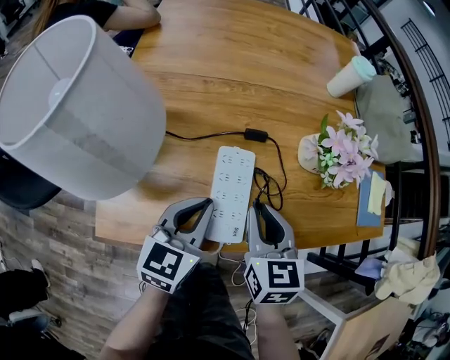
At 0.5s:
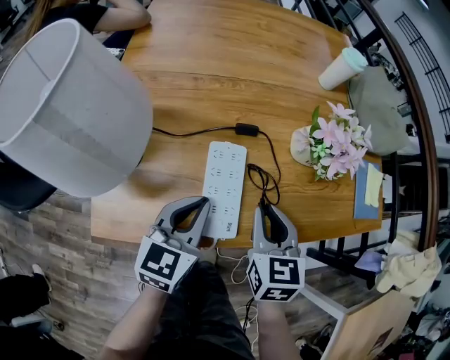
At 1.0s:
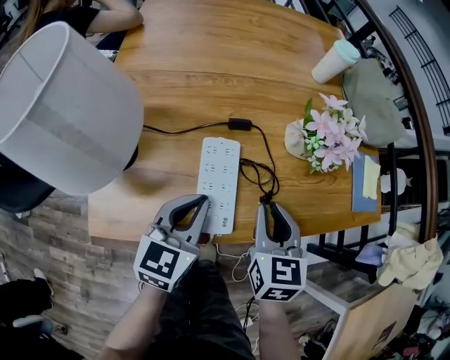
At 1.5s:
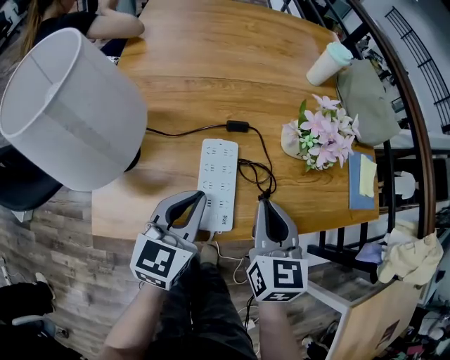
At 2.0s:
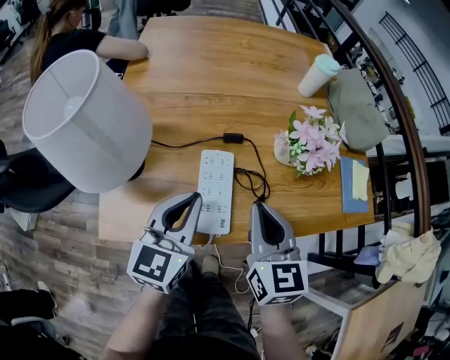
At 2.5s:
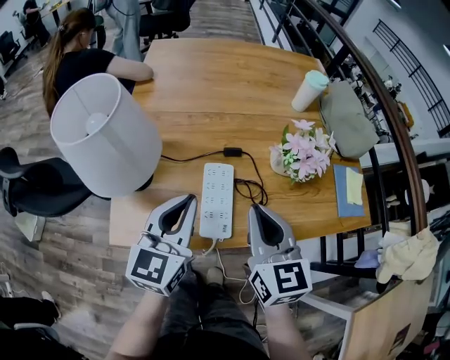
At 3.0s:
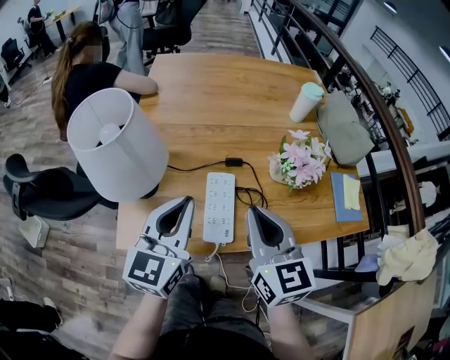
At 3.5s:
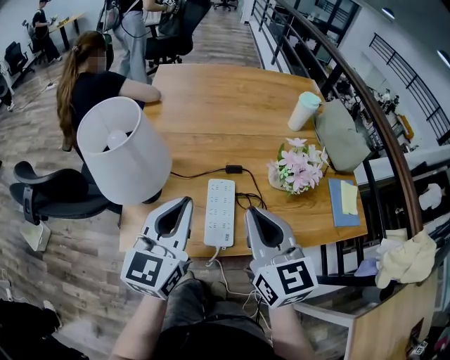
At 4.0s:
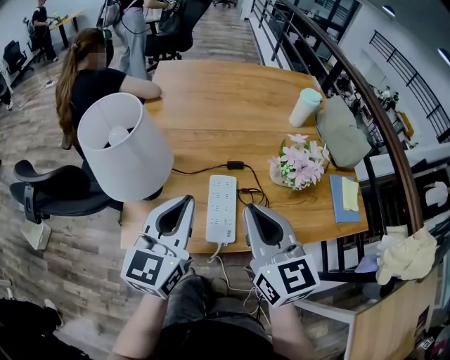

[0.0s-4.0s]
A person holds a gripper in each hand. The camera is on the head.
0.0s to 2.0s: Both grippers move upward, some 10 cm.
2.0s to 4.0s: The two grippers go some 10 cm upward.

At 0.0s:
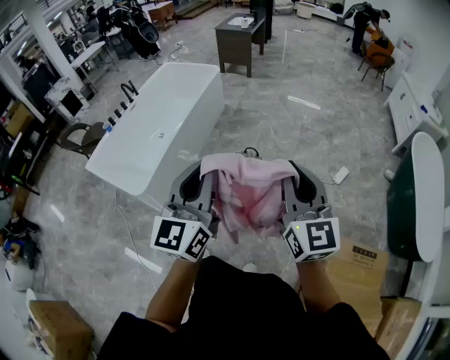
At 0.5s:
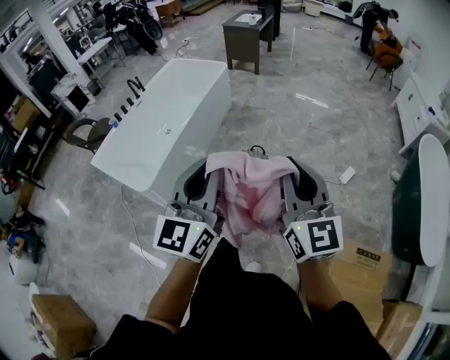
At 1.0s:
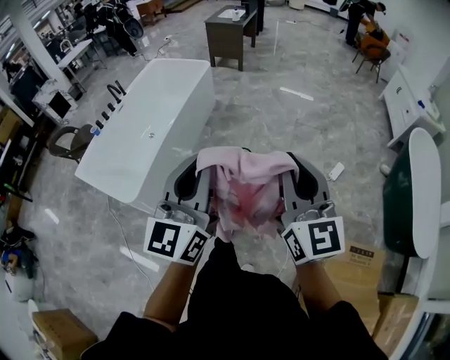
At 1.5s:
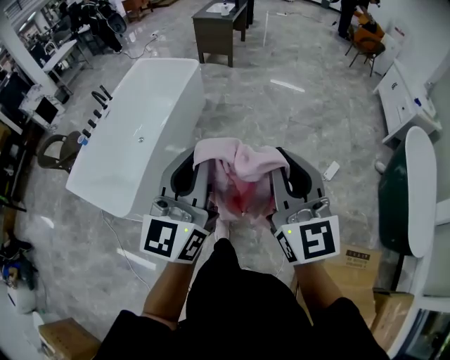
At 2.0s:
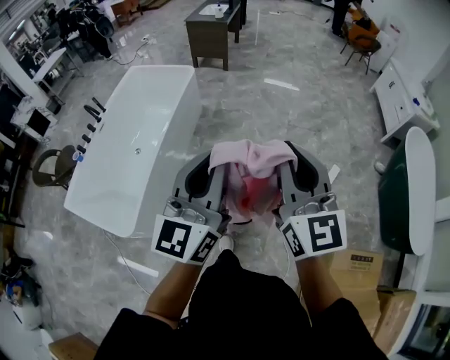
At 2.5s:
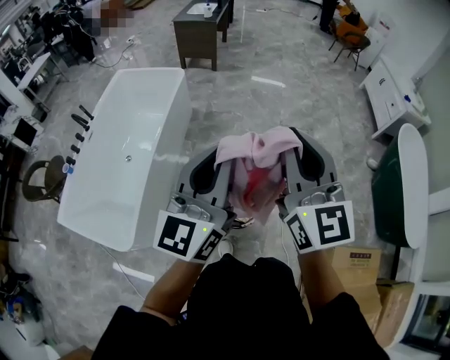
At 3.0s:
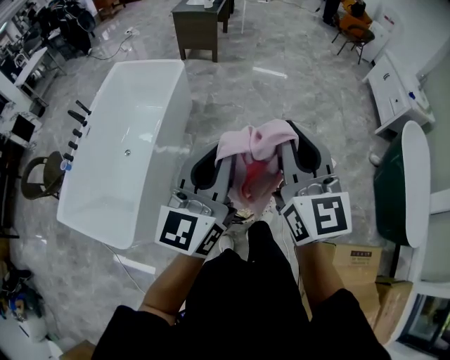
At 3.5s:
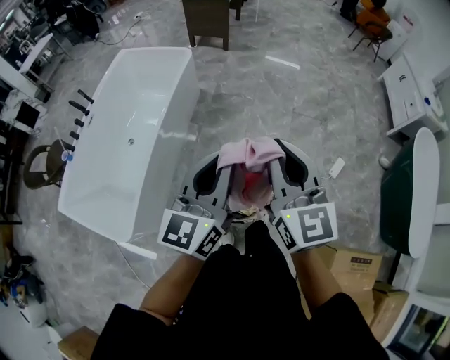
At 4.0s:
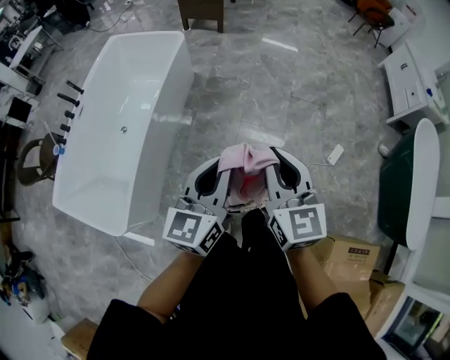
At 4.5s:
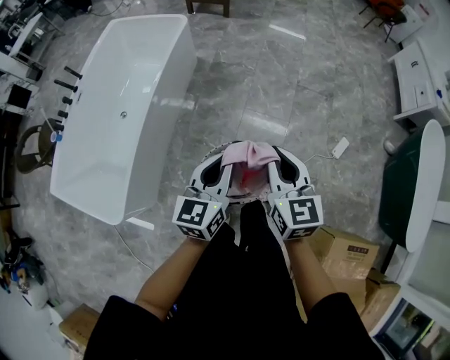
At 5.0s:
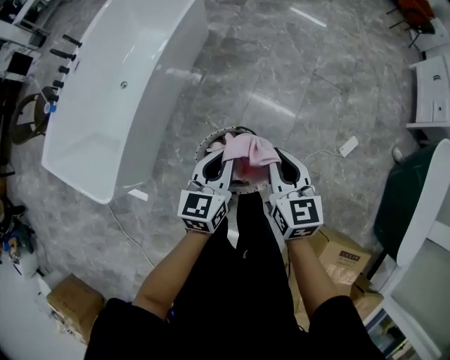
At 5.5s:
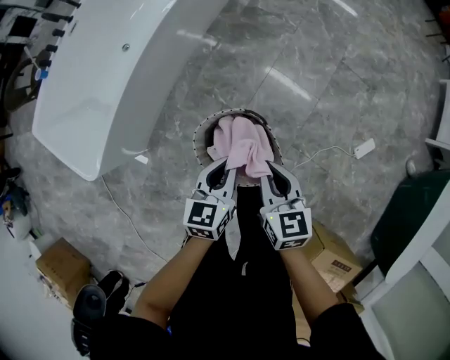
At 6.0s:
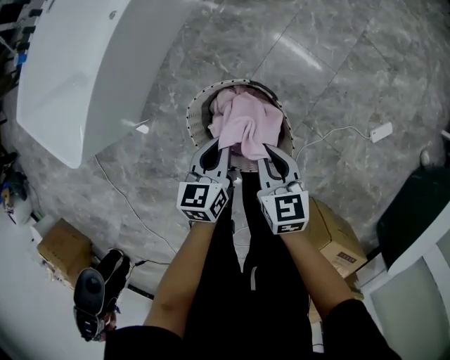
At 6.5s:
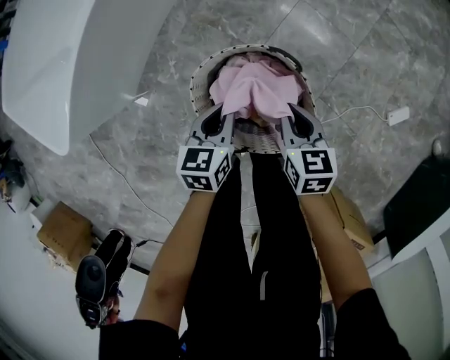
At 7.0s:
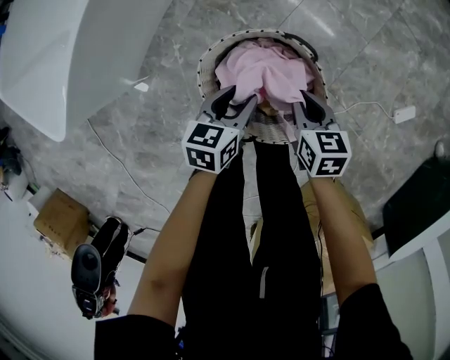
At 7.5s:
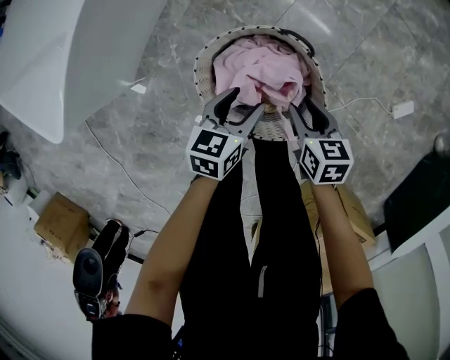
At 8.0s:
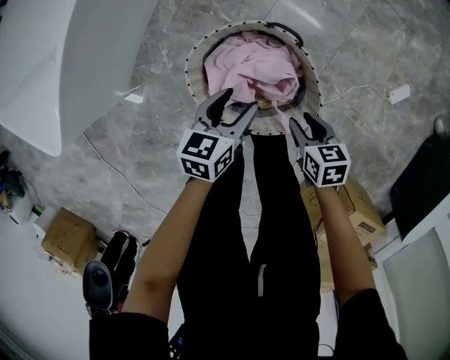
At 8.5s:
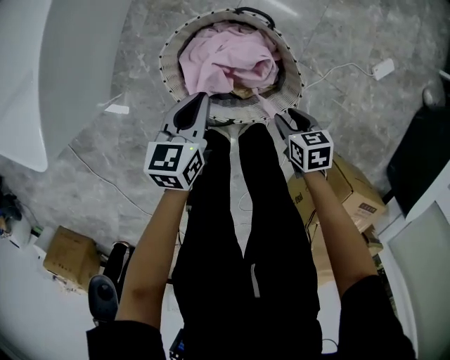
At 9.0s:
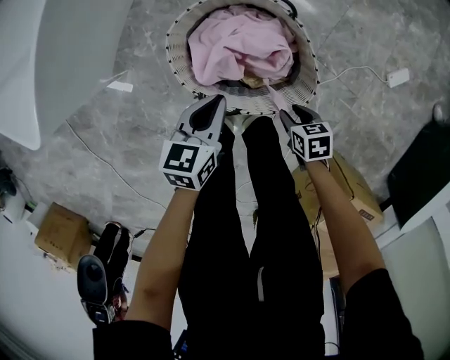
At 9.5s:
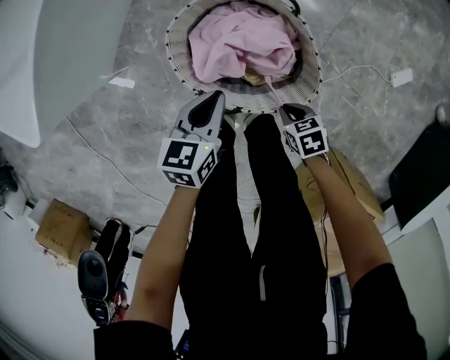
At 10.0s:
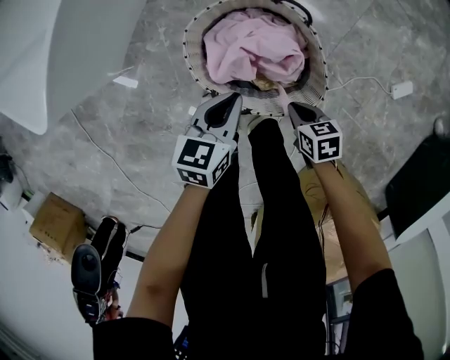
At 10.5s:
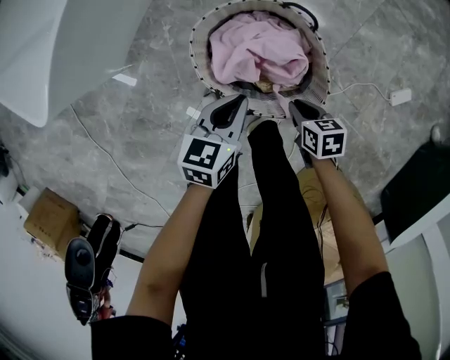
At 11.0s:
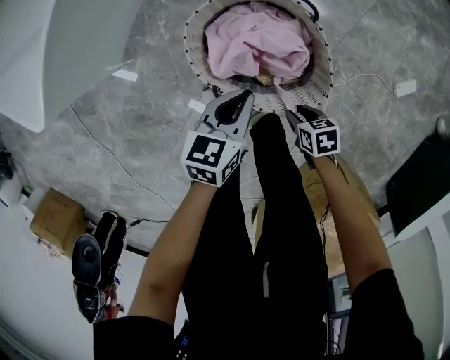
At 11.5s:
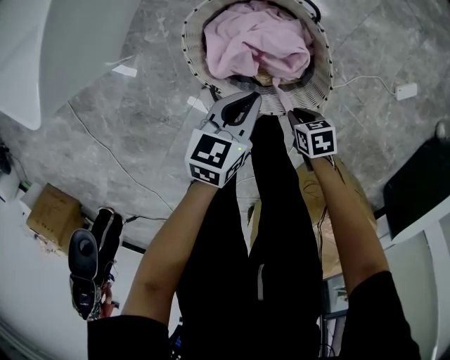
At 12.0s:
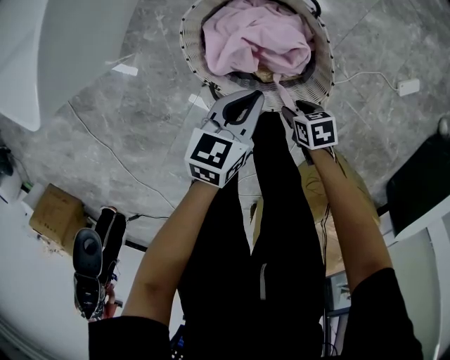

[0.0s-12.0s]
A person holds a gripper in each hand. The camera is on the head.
0.0s to 2.0s: Both grippers move forward, approximately 30 cm.
2.0s to 4.0s: The left gripper is displaced downward and forward by about 25 cm, and swivels roughly 20 degrees. Meanwhile the right gripper shifts some 25 cm forward and downward.
4.0s to 6.0s: The grippers both shift downward by about 50 cm. The right gripper turns by some 40 degrees. The left gripper tips its fingers downward by about 30 degrees.
6.0s to 8.0s: The right gripper heads downward and backward, covering about 20 cm, rotates about 20 degrees, and opens up. The left gripper travels downward and backward by approximately 15 cm, and opens its fingers.
8.0s to 10.0s: The right gripper travels downward and backward by approximately 10 cm, and closes, while the left gripper shifts about 5 cm backward, and closes up.
10.0s to 12.0s: The right gripper travels downward by approximately 5 cm, and opens its fingers.

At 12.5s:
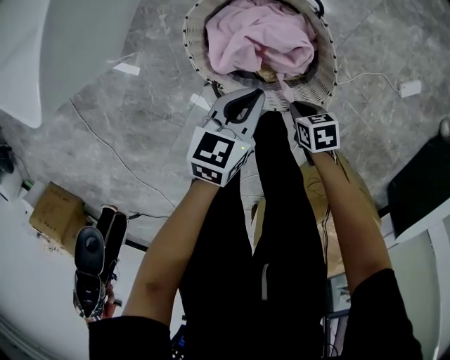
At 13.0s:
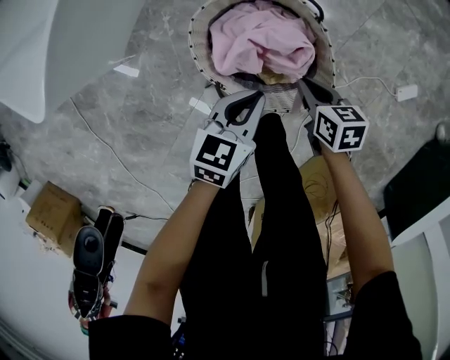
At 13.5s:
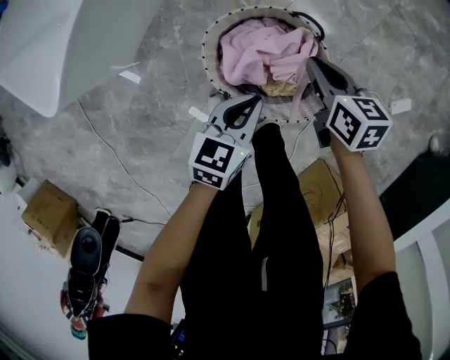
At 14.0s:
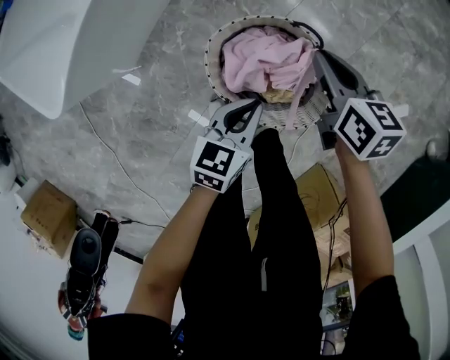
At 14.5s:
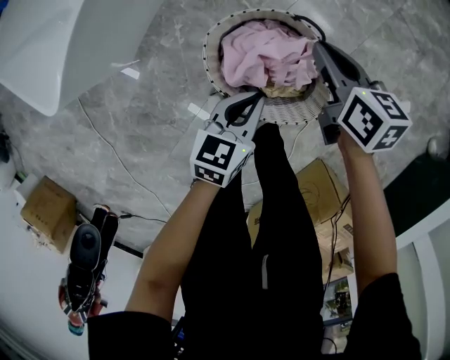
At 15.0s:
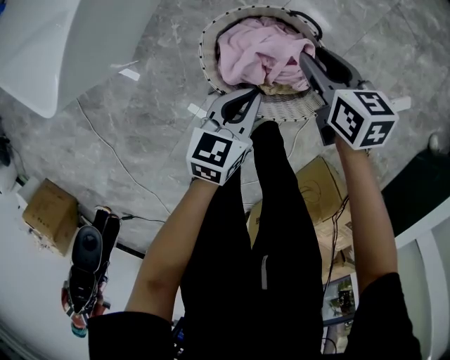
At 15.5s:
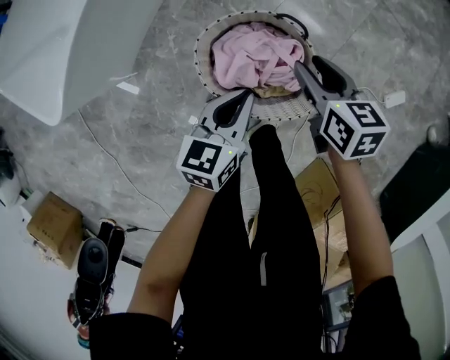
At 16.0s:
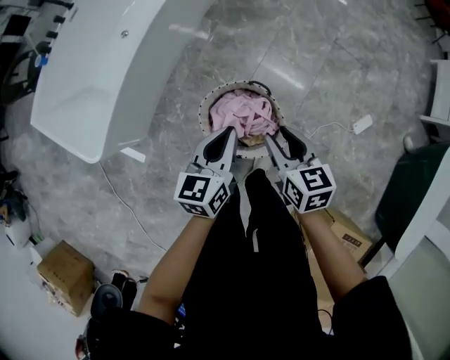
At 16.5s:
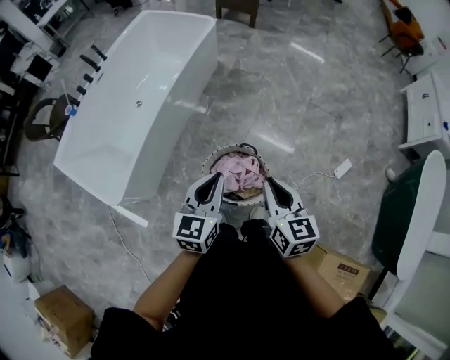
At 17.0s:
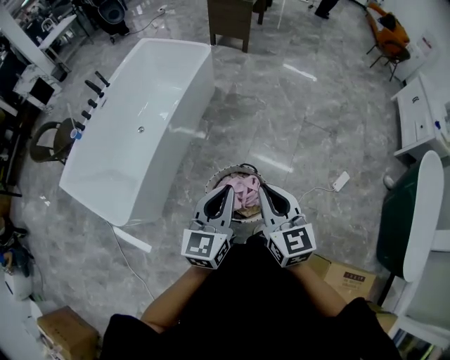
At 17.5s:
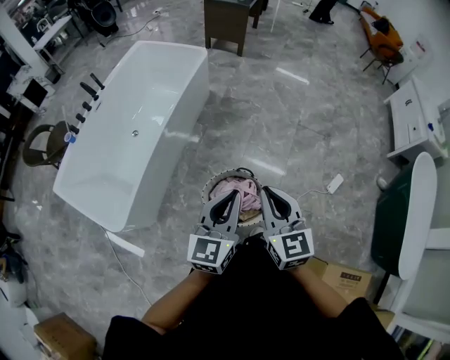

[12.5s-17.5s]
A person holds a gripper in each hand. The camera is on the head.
12.5s to 15.0s: The left gripper shifts about 5 cm upward. The right gripper ends up roughly 30 cm from where it was, swivels approximately 30 degrees, and opens its fingers.
15.0s to 17.5s: Both grippers travel together upward, about 60 cm. The left gripper changes its angle by roughly 30 degrees, while the right gripper swivels approximately 40 degrees, and closes.

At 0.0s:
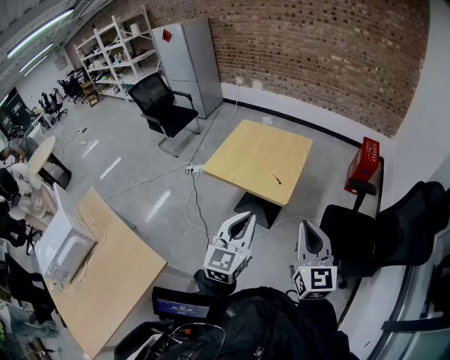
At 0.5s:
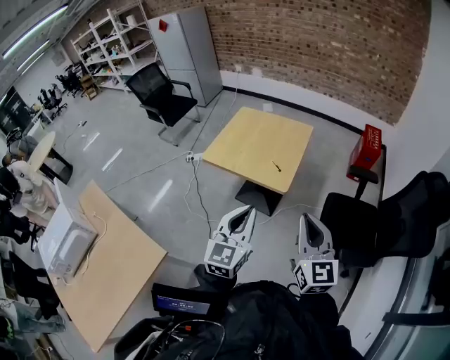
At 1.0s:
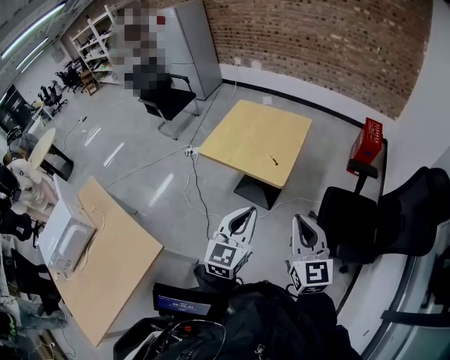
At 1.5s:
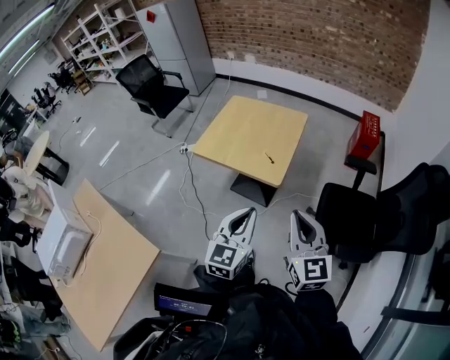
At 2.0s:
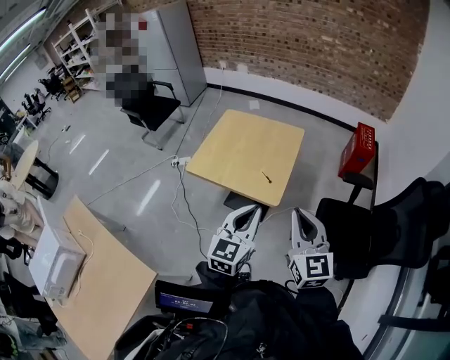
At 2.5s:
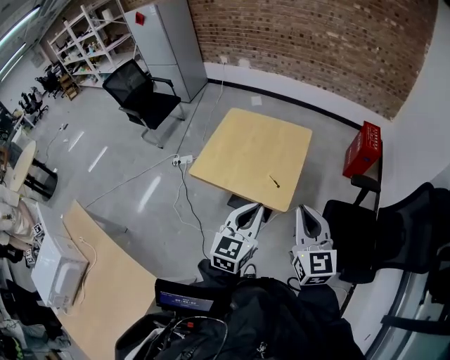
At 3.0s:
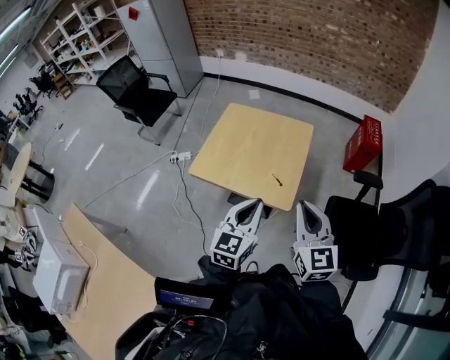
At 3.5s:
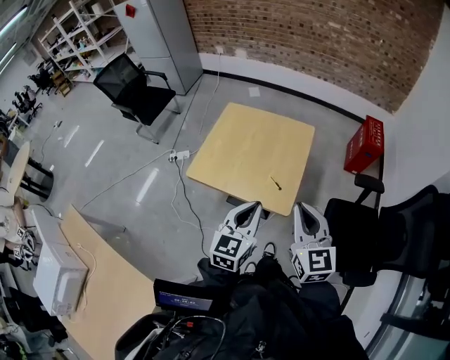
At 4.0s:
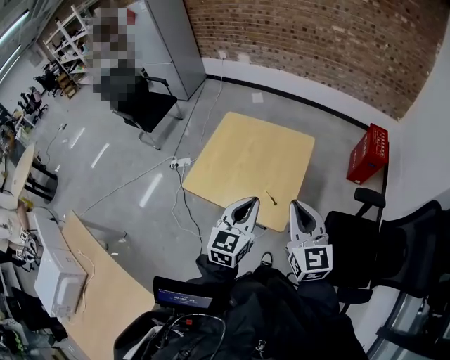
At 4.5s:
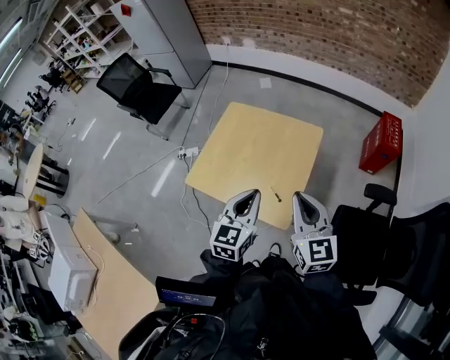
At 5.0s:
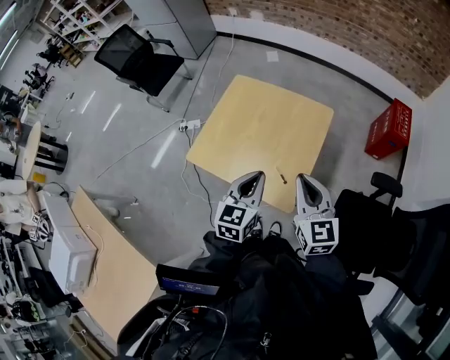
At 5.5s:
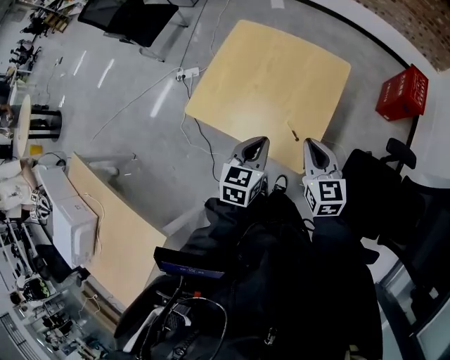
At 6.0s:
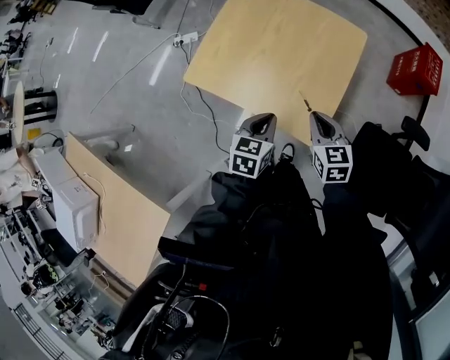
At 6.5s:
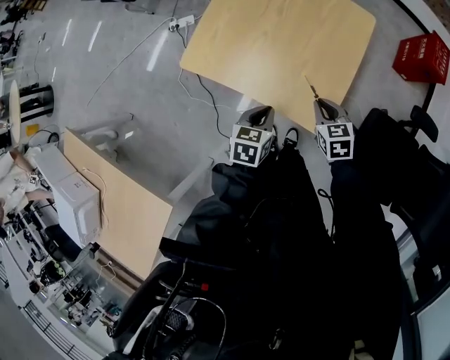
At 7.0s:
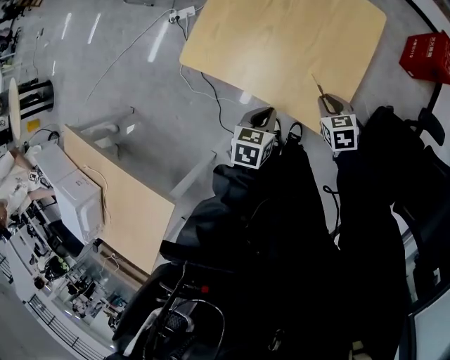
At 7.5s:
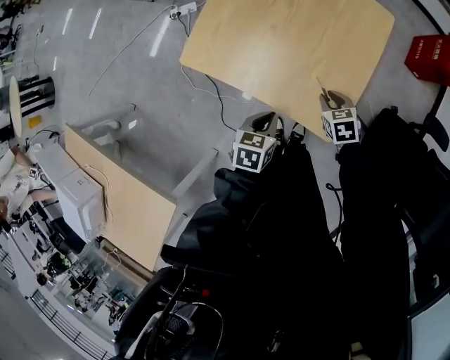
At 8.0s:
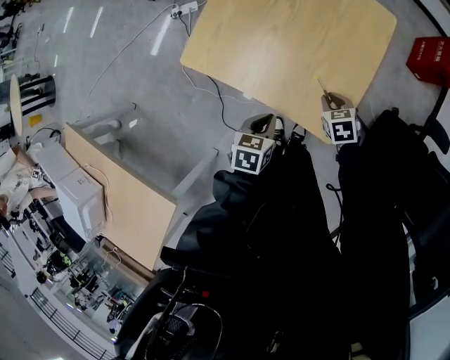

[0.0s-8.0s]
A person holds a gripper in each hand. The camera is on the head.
0.0s to 2.0s: The left gripper is displaced forward and downward by roughly 15 cm. The right gripper is displaced forward by some 10 cm.
2.0s to 4.0s: The grippers both shift forward by approximately 20 cm.
4.0s to 6.0s: Both grippers move downward, roughly 25 cm. The right gripper swivels about 30 degrees, while the left gripper turns by some 30 degrees.
6.0s to 8.0s: The left gripper moves downward, roughly 10 cm. The right gripper is displaced downward by about 20 cm, and changes its angle by approximately 30 degrees.
